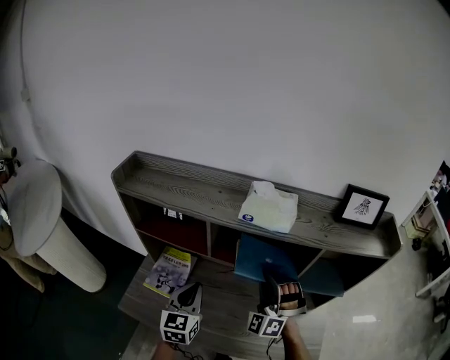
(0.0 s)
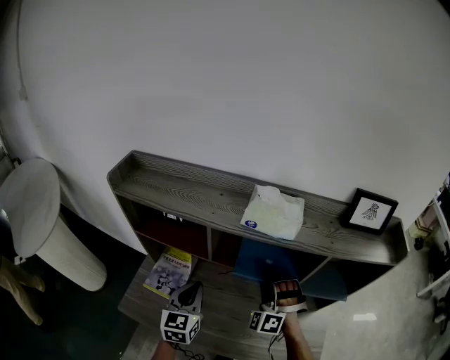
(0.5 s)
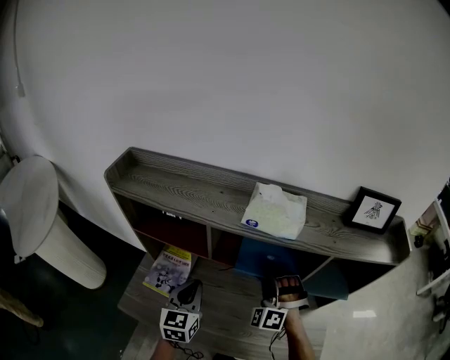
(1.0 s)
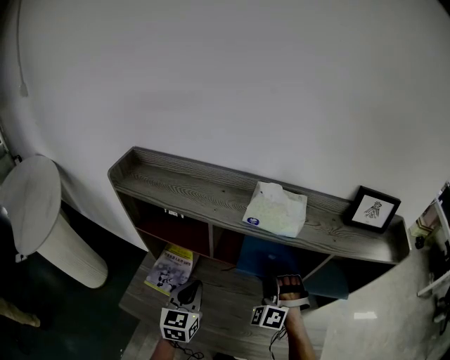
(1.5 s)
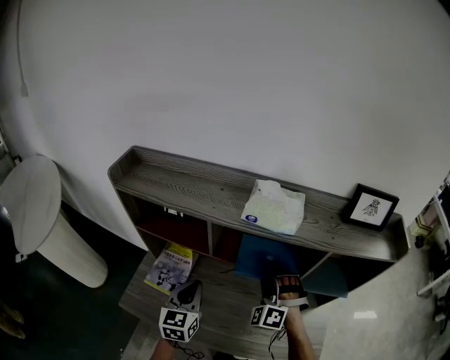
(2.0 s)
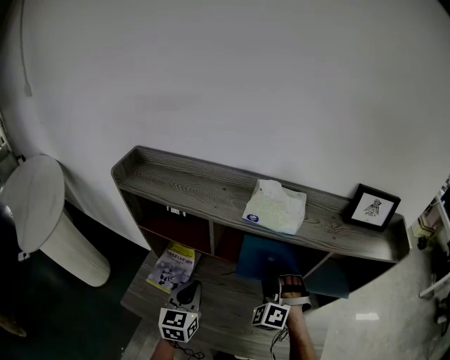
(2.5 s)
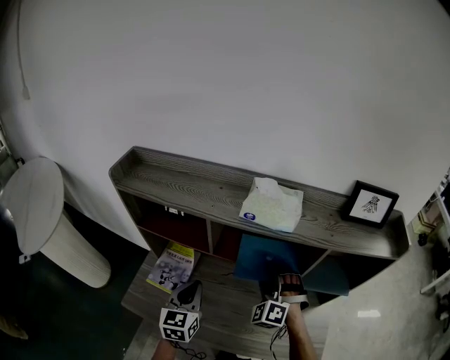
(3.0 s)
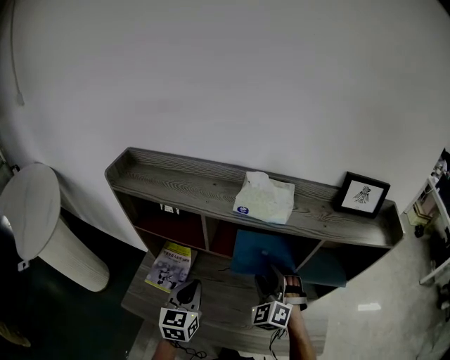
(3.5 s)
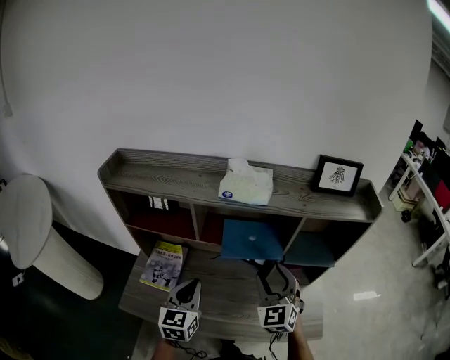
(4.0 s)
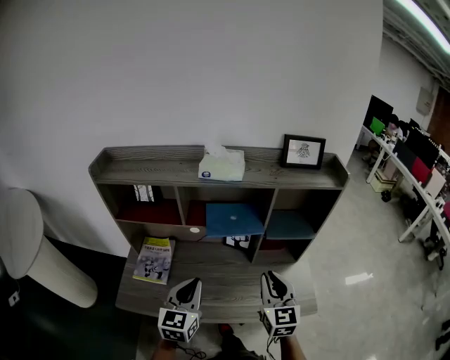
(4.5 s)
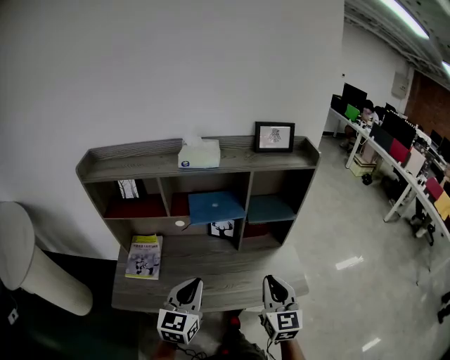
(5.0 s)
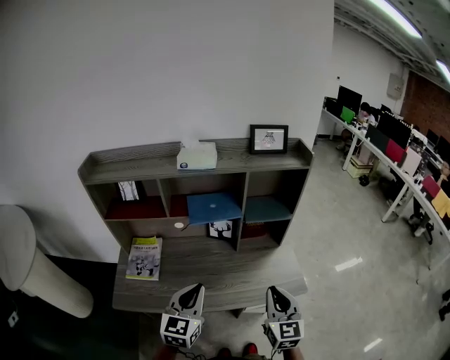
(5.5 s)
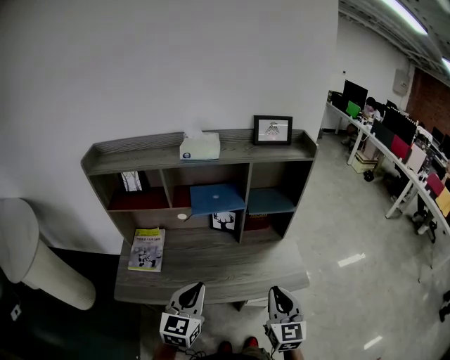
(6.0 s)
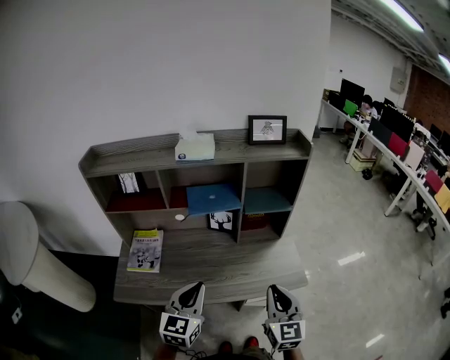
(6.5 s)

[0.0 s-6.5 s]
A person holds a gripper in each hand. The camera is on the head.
0.0 to 2.0 s: The right gripper travels downward by about 5 cm.
2.0 to 4.5 s: The right gripper moves backward and to the right, about 25 cm, rotates around the line of its fingers by roughly 70 degrees, clockwise from behind, and opens, then closes once more. Meanwhile the left gripper heads backward and to the right, covering roughly 15 cm.
4.5 to 6.5 s: Both grippers travel together backward and to the right, roughly 15 cm.

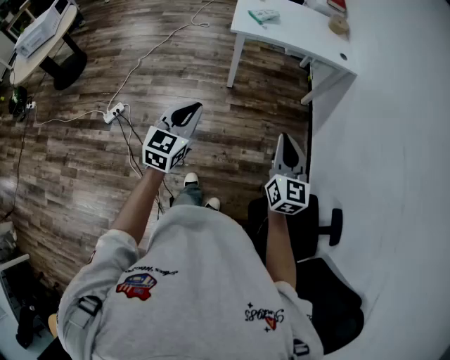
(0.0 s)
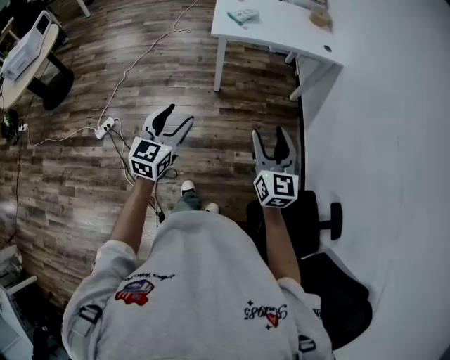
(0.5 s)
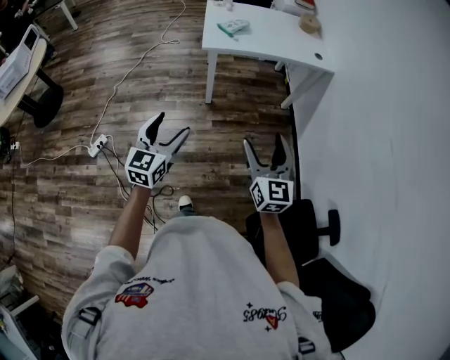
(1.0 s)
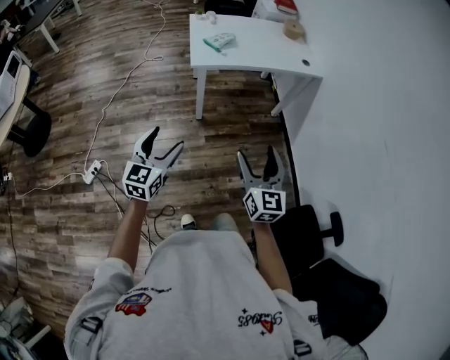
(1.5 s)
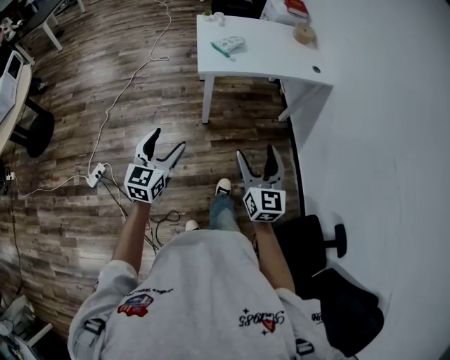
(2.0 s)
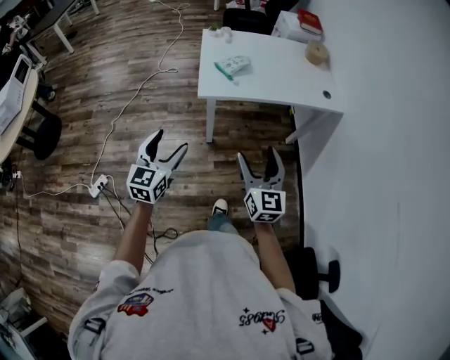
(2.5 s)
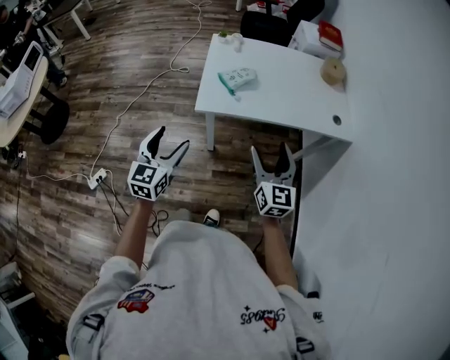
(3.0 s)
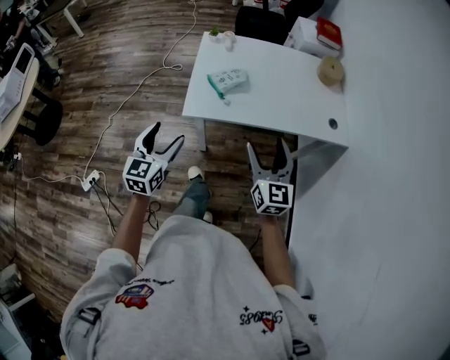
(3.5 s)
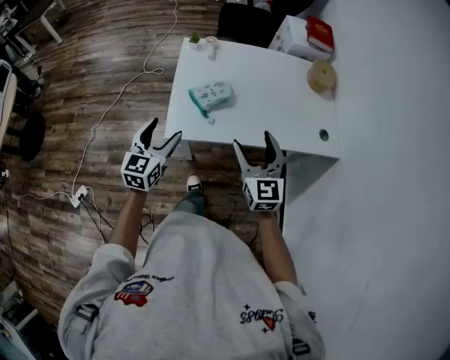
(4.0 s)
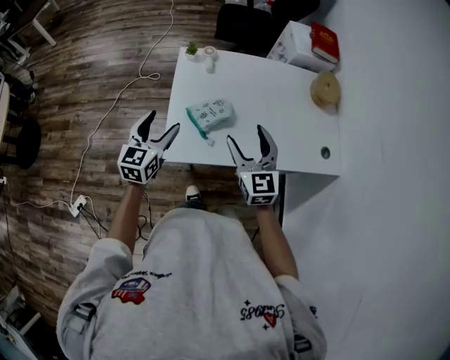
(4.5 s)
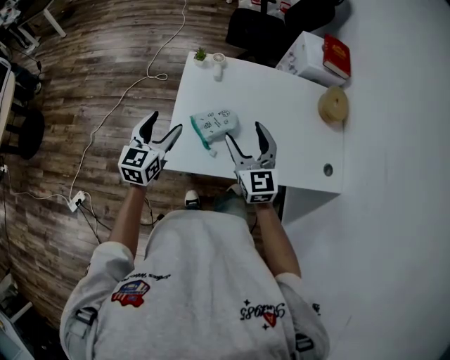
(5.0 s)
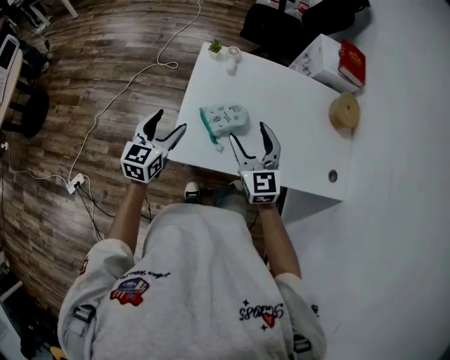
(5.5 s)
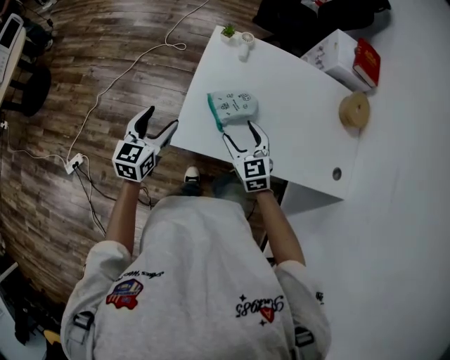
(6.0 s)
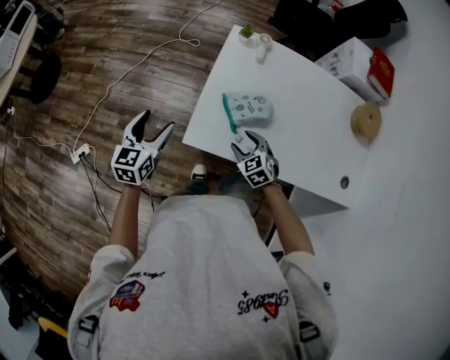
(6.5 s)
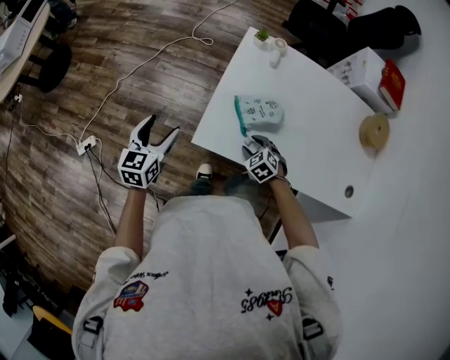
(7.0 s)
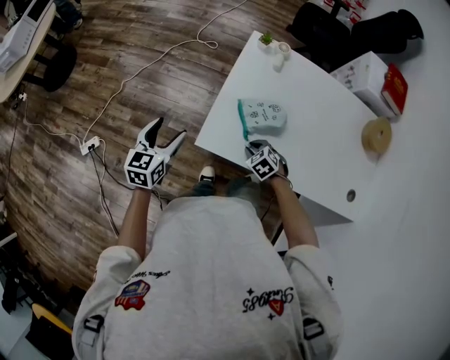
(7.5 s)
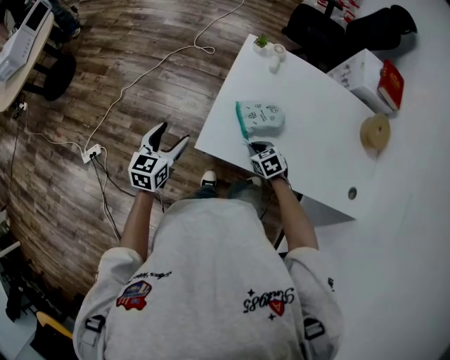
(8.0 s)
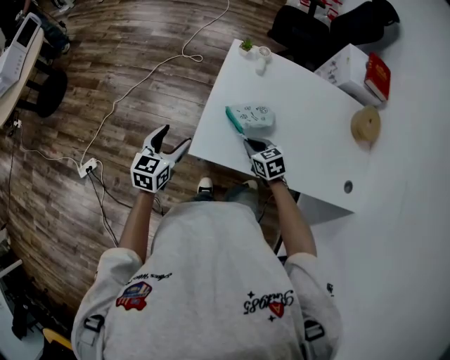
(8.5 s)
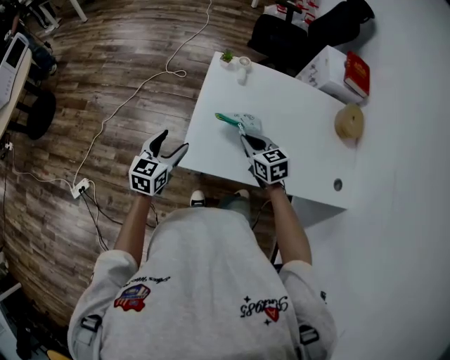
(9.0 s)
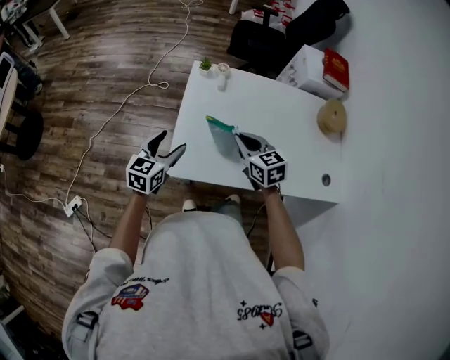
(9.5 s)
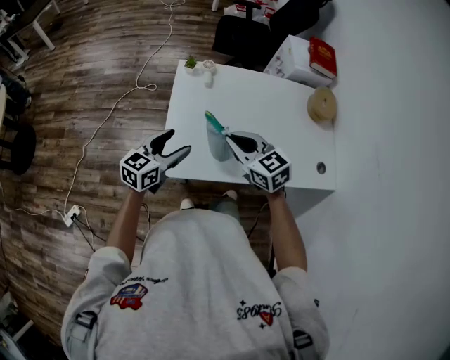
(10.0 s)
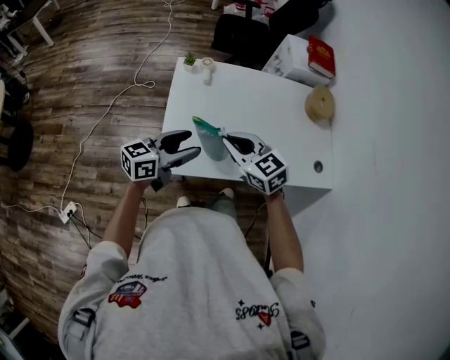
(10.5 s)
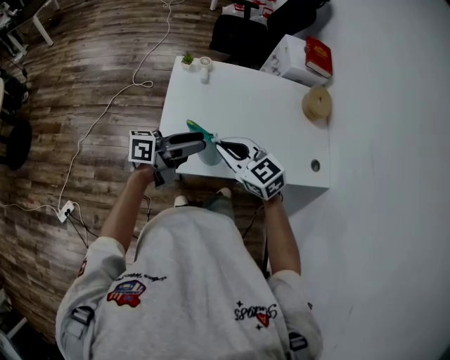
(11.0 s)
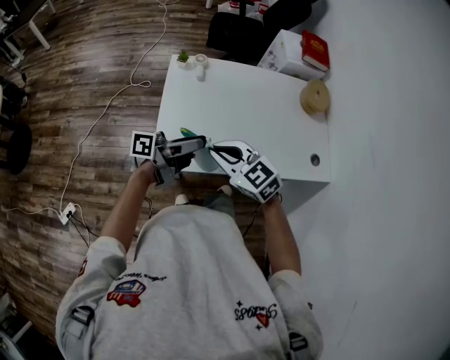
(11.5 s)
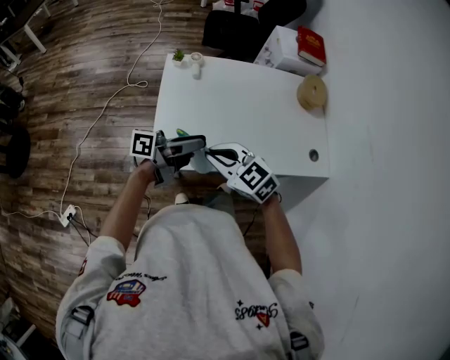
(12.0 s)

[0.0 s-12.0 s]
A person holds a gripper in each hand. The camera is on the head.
0.0 to 2.0 s: Both grippers travel together forward and to the left, approximately 25 cm. The left gripper opens up; the right gripper opens.
2.0 to 4.0 s: The two grippers travel together, forward, about 60 cm.
4.0 to 6.0 s: The left gripper travels forward, to the left and downward by roughly 15 cm, while the right gripper is displaced forward, downward and to the left by about 25 cm, and swivels approximately 30 degrees.
6.0 to 8.0 s: The right gripper moves downward, some 15 cm, rotates approximately 30 degrees, and closes its fingers, while the left gripper moves to the left, about 5 cm.
8.0 to 10.0 s: The left gripper is displaced to the right and upward by about 20 cm, and swivels about 30 degrees. The right gripper moves upward, approximately 30 cm, and tilts its fingers approximately 30 degrees upward.
10.0 to 12.0 s: The right gripper ends up some 10 cm from where it was. Meanwhile the left gripper shifts by about 10 cm, and swivels about 60 degrees.

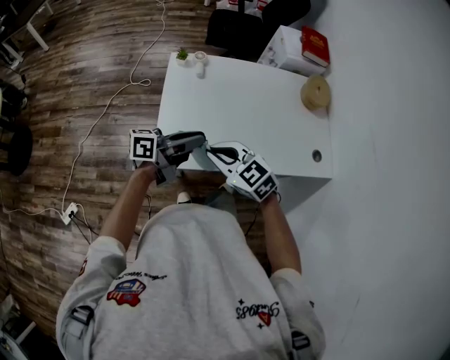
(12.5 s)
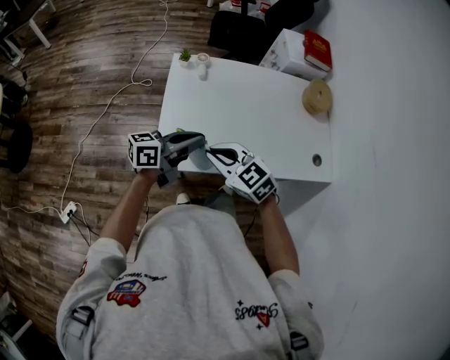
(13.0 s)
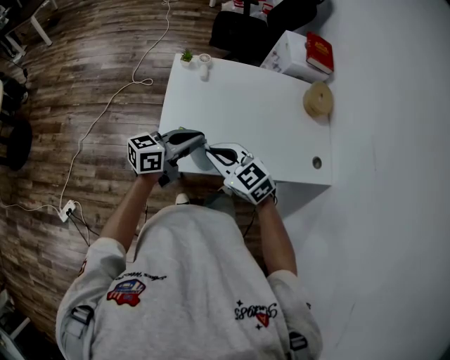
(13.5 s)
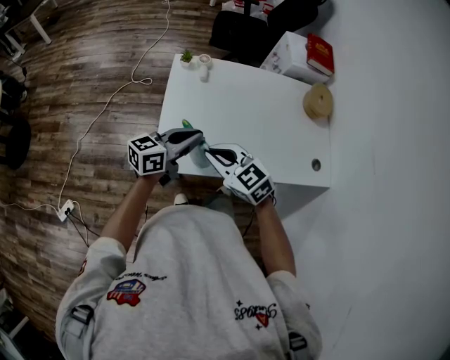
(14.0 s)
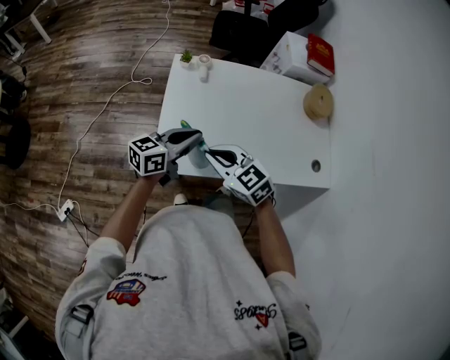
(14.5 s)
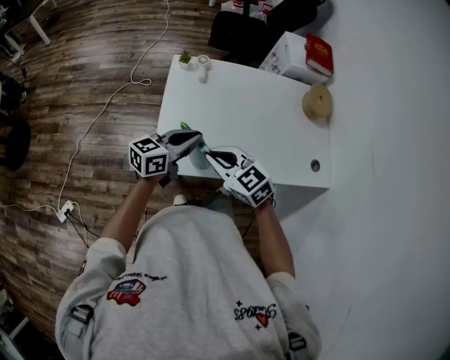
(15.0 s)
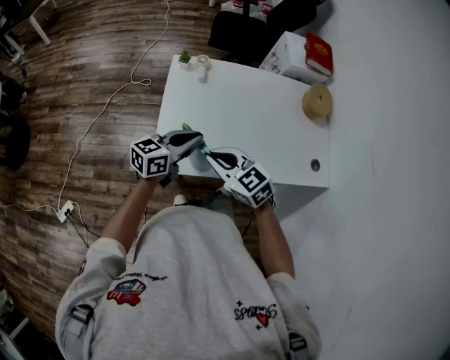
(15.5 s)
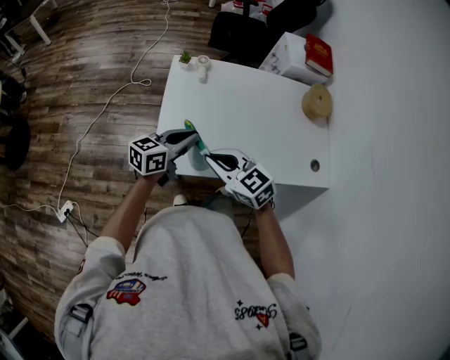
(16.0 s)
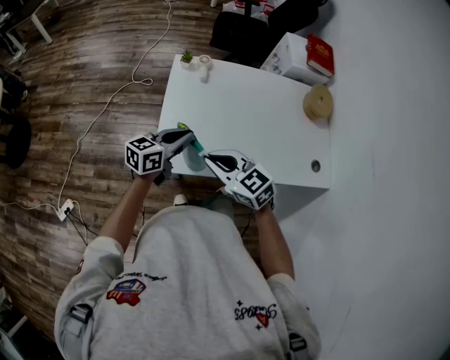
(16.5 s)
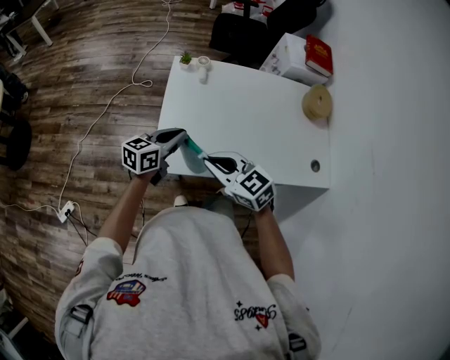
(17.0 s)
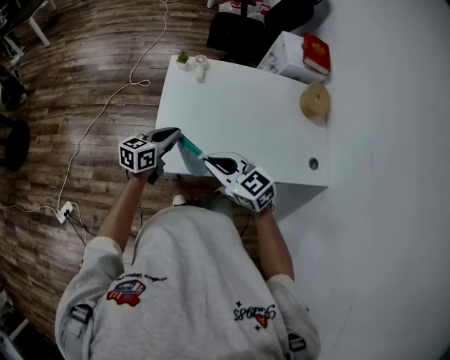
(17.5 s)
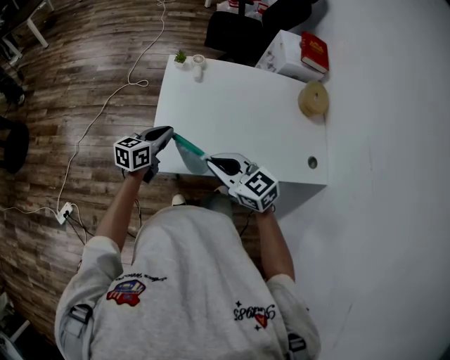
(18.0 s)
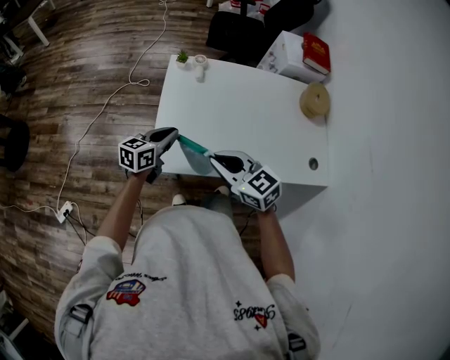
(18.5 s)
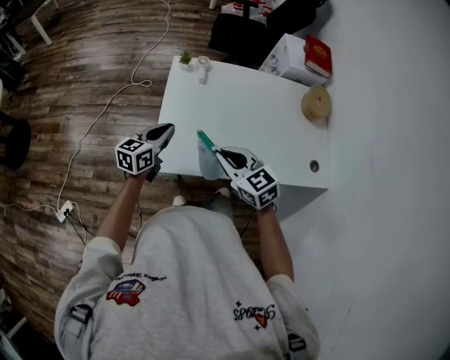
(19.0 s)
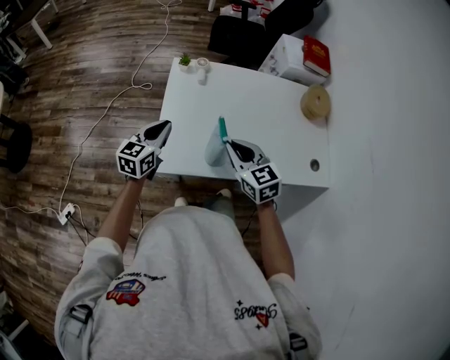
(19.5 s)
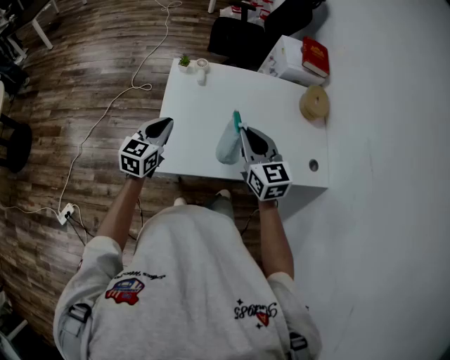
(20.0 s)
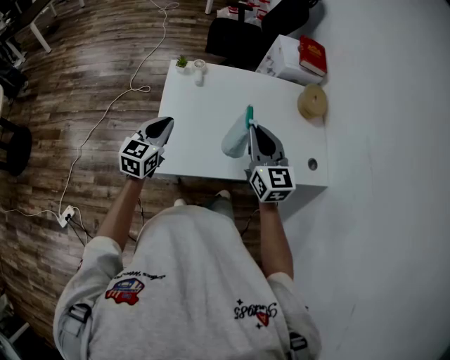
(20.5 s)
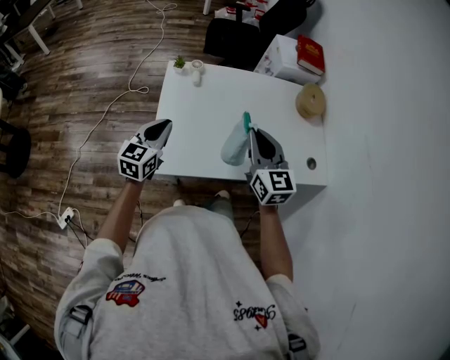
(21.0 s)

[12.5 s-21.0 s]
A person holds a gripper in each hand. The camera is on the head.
12.5 to 14.5 s: The left gripper rotates about 30 degrees.
14.5 to 16.5 s: The grippers stay close to where they were, moving slightly.
16.5 to 19.0 s: The left gripper heads to the left, covering about 5 cm.
19.0 to 21.0 s: The right gripper moves to the right and upward, roughly 15 cm, and rotates approximately 30 degrees, while the left gripper moves upward, some 5 cm.
